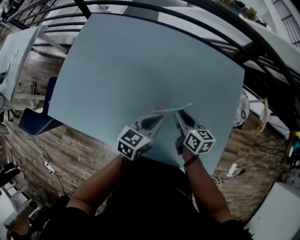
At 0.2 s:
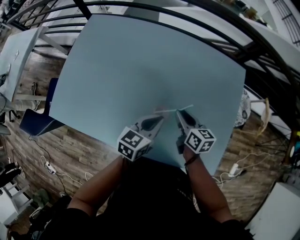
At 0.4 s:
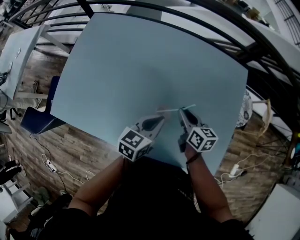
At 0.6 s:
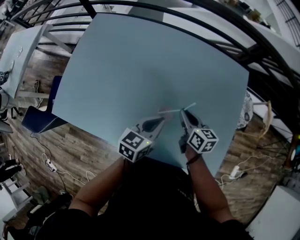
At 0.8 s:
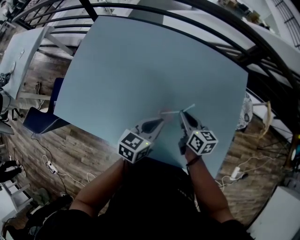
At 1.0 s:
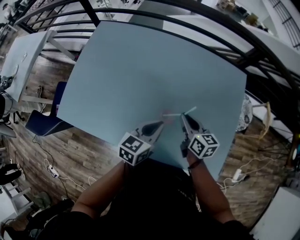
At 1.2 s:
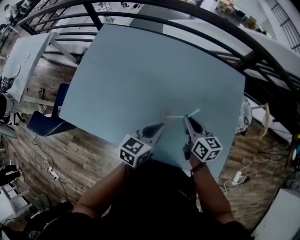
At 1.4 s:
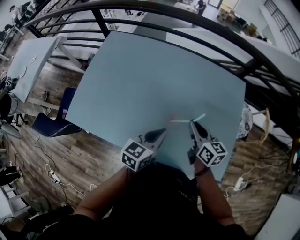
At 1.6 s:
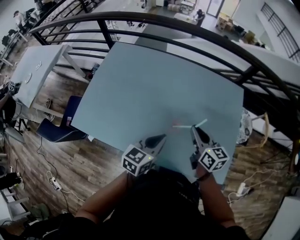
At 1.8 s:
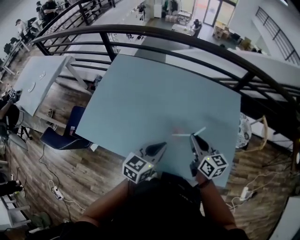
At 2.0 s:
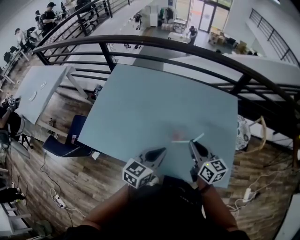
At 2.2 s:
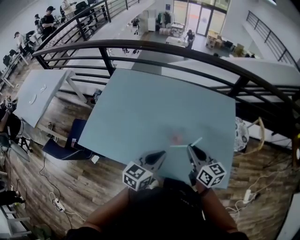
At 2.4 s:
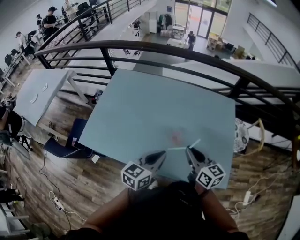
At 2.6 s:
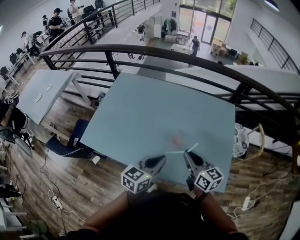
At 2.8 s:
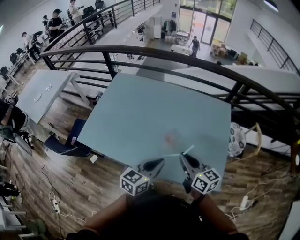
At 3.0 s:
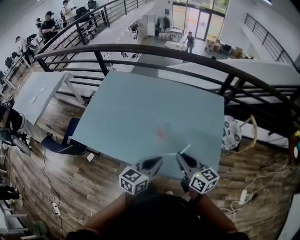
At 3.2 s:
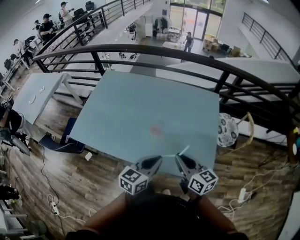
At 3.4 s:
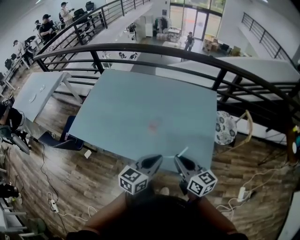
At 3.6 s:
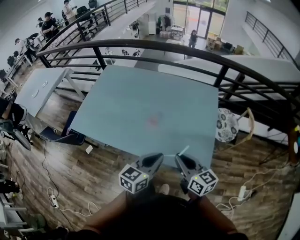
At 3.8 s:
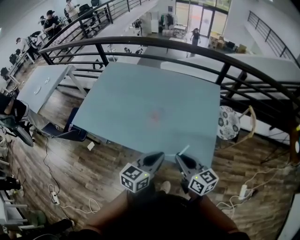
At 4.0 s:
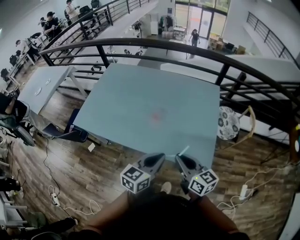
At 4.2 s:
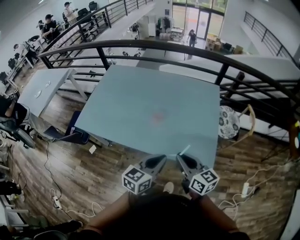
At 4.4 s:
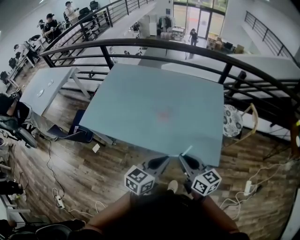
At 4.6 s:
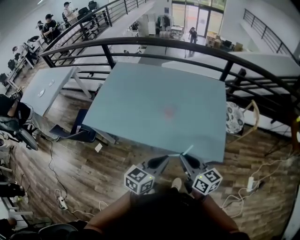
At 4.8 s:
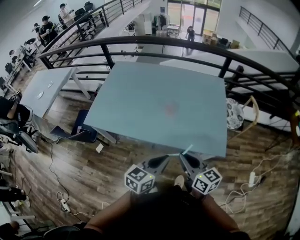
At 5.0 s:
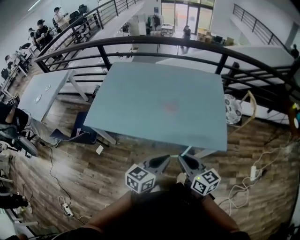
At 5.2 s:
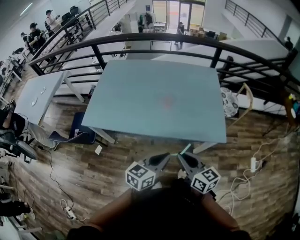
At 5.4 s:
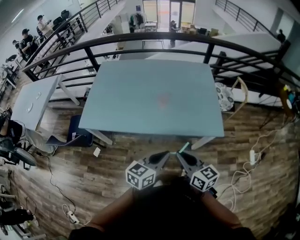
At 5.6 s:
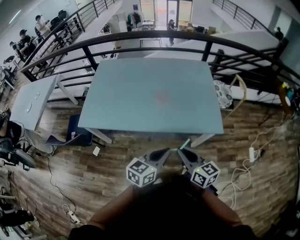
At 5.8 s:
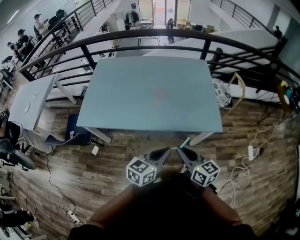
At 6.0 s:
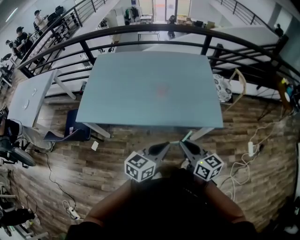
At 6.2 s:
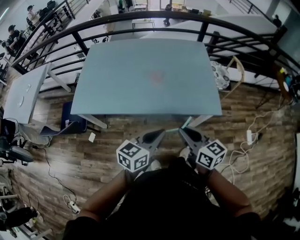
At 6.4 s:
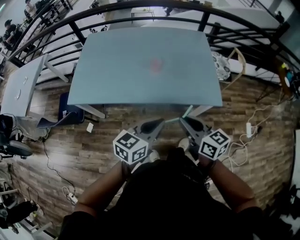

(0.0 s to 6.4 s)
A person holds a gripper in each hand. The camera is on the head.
0.0 s - 1.6 s: The left gripper travels upward, backward and to the left by approximately 15 cm; the right gripper is displaced upward and backward by about 15 cm.
1.6 s - 3.2 s: The left gripper heads backward, to the right and upward, covering approximately 20 cm. The right gripper moves backward and to the right, some 20 cm.
3.2 s - 4.8 s: Both grippers travel together backward and to the left, about 20 cm.

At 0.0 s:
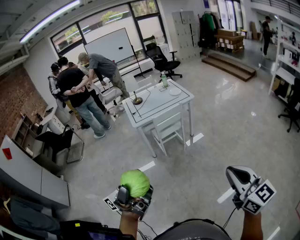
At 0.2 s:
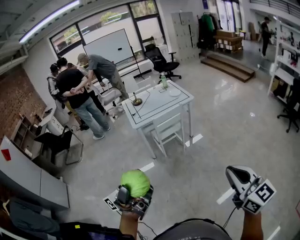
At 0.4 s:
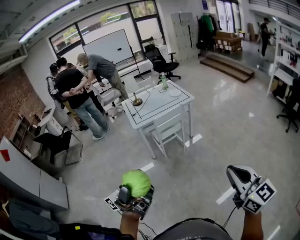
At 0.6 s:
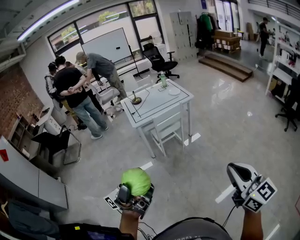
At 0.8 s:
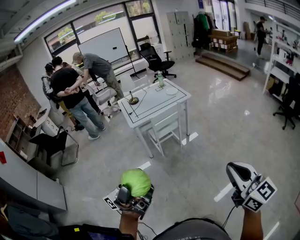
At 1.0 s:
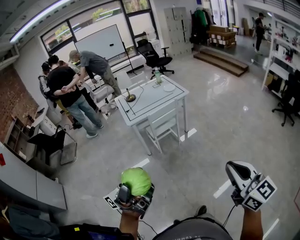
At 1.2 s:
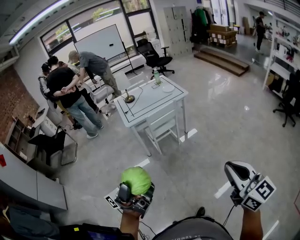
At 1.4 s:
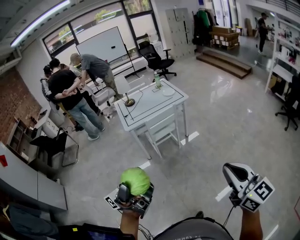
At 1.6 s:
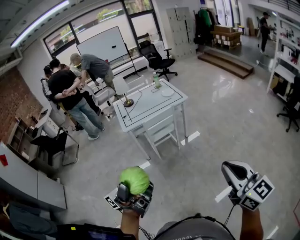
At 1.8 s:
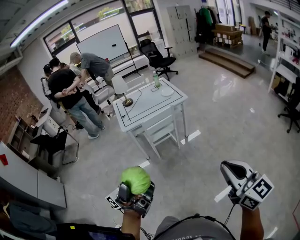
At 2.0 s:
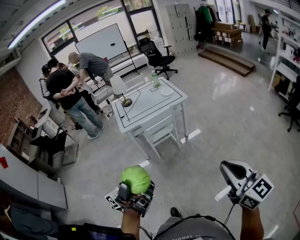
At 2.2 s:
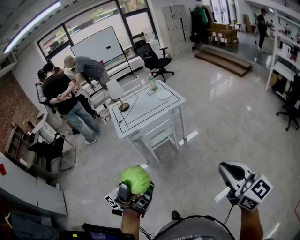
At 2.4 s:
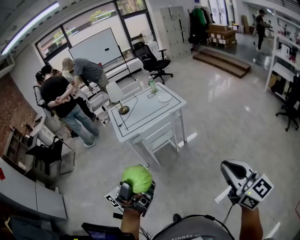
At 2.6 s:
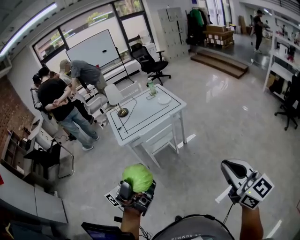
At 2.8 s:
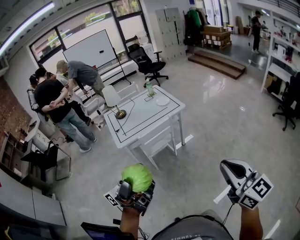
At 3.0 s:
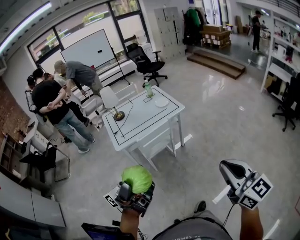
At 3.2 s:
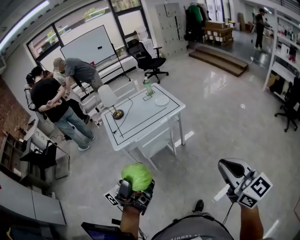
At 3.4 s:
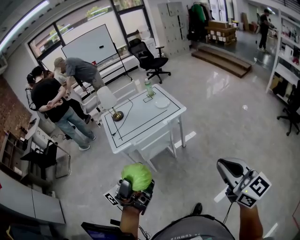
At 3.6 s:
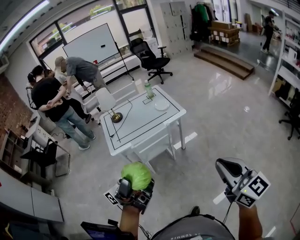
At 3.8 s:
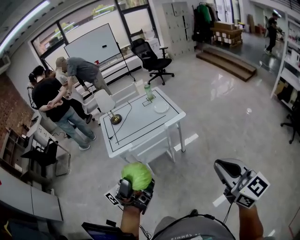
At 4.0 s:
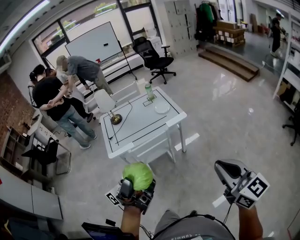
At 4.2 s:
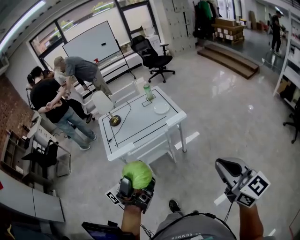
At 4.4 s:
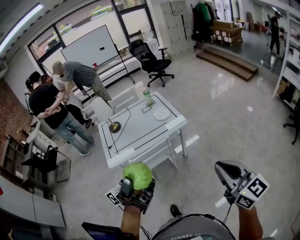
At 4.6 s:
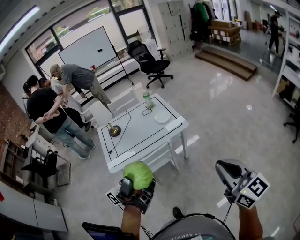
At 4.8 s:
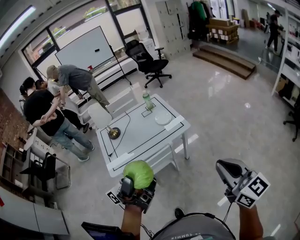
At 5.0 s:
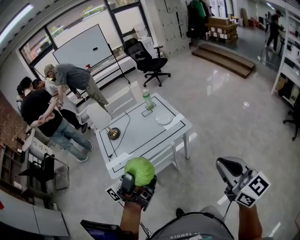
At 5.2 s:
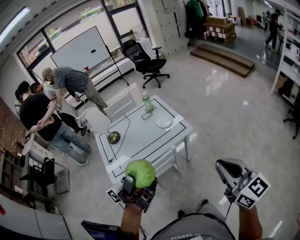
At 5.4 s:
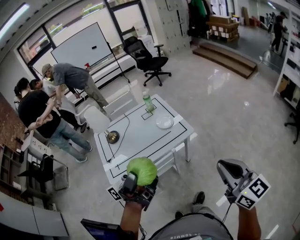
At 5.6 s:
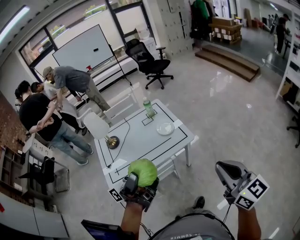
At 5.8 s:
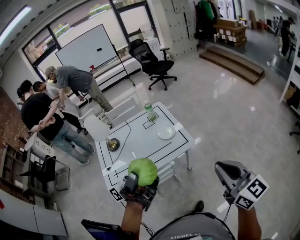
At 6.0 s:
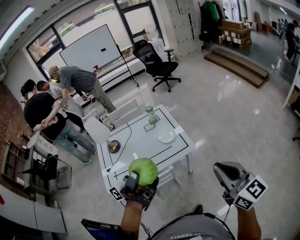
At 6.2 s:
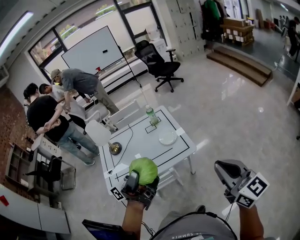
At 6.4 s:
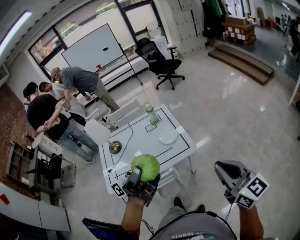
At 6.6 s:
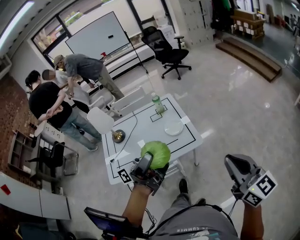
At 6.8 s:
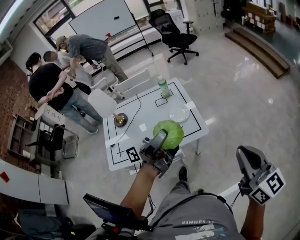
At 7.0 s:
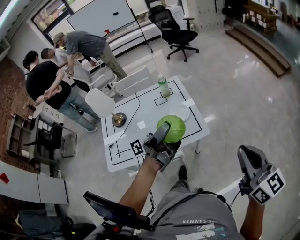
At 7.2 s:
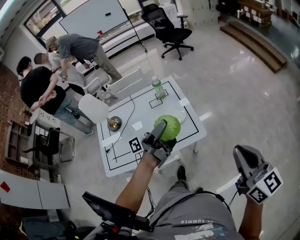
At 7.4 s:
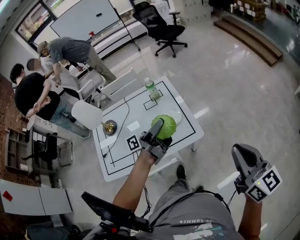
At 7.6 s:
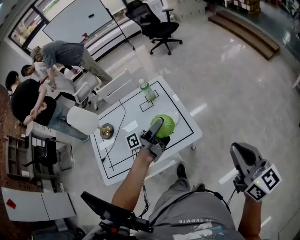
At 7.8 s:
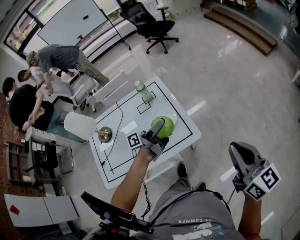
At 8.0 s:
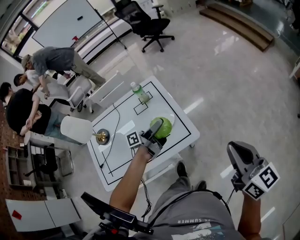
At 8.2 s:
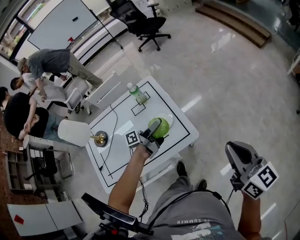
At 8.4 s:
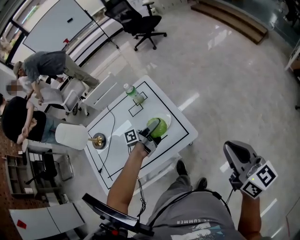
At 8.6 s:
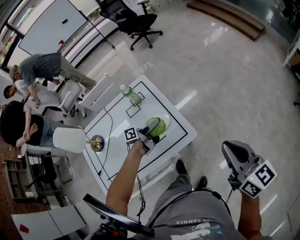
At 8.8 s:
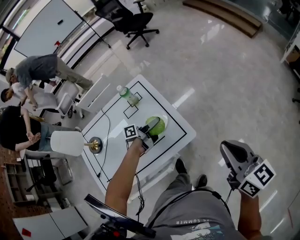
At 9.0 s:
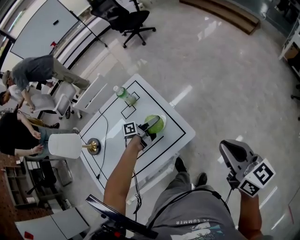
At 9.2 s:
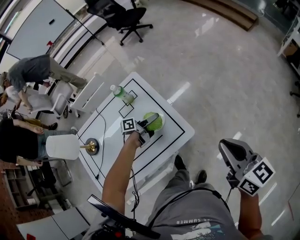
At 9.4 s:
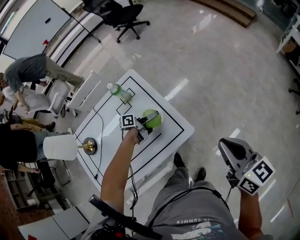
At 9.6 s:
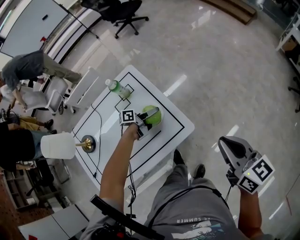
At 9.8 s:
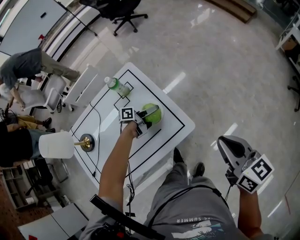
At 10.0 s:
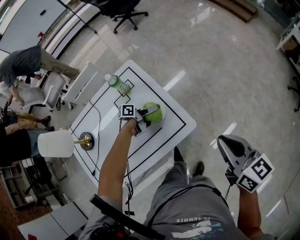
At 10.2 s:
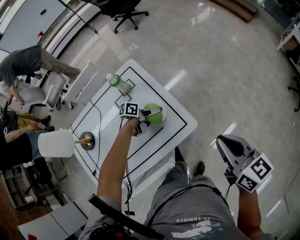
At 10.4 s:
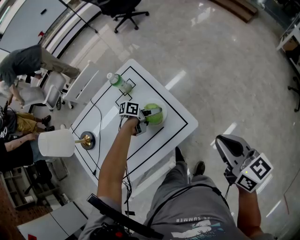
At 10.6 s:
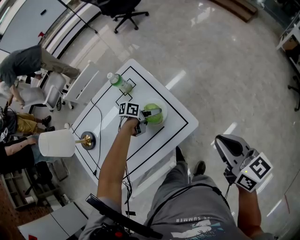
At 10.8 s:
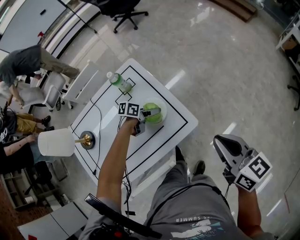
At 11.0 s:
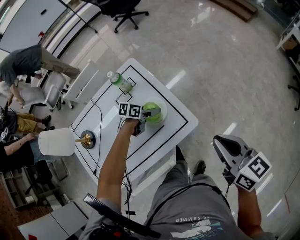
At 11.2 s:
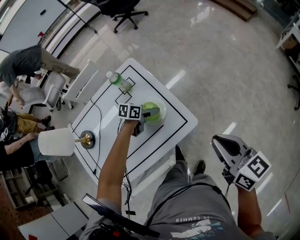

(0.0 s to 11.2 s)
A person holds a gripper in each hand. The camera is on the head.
0.0 s - 1.6 s: The right gripper goes about 10 cm forward; the left gripper travels forward and to the right by approximately 10 cm.
1.6 s - 3.2 s: The two grippers go approximately 20 cm forward.
3.2 s - 4.8 s: Both grippers move forward, approximately 25 cm.
4.8 s - 6.4 s: Both grippers travel together forward, approximately 25 cm.
6.4 s - 8.0 s: The right gripper goes roughly 20 cm forward and downward, while the left gripper heads forward and downward, covering some 40 cm, and points its fingers roughly 30 degrees further downward.
8.0 s - 9.6 s: The right gripper goes approximately 5 cm downward. The left gripper shifts about 20 cm downward and forward, and rotates about 40 degrees.
9.6 s - 11.2 s: The left gripper swivels roughly 40 degrees.

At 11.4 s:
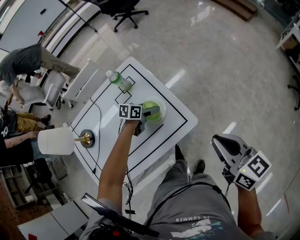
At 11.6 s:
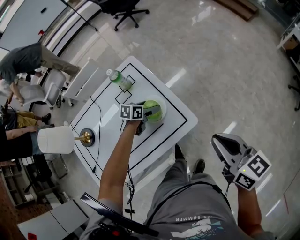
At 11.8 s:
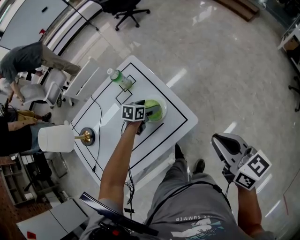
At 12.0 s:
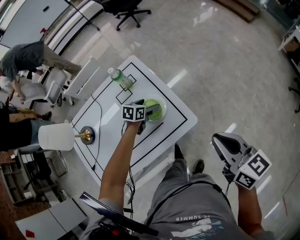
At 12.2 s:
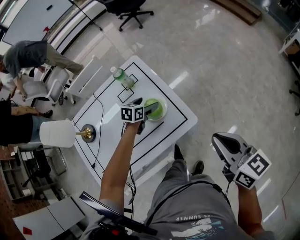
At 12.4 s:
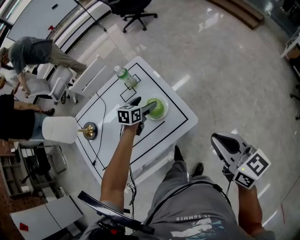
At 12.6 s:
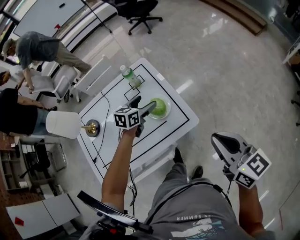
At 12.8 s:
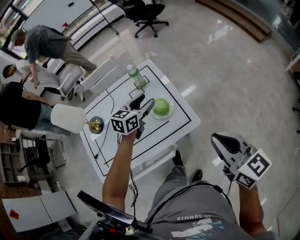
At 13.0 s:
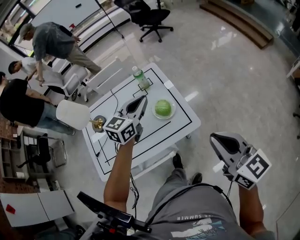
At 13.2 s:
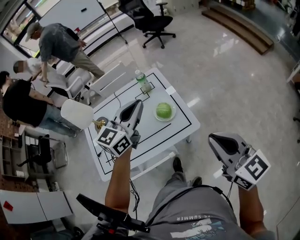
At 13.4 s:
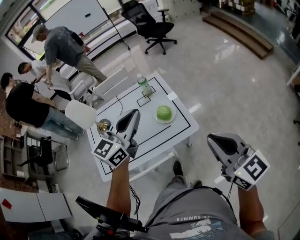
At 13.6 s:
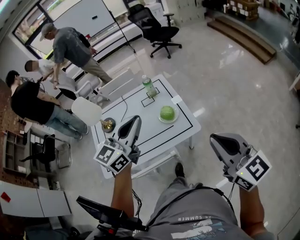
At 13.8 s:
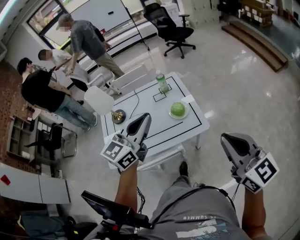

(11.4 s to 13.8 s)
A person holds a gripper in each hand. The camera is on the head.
11.4 s - 12.6 s: The left gripper goes approximately 15 cm upward, and swivels about 30 degrees.
12.6 s - 13.8 s: The left gripper goes roughly 40 cm upward and backward, angles its fingers upward, by approximately 30 degrees, and closes; the right gripper moves upward and backward, about 15 cm, and changes its angle by some 20 degrees.

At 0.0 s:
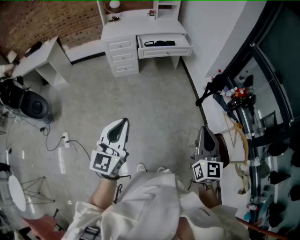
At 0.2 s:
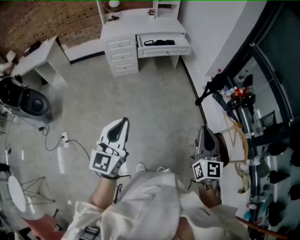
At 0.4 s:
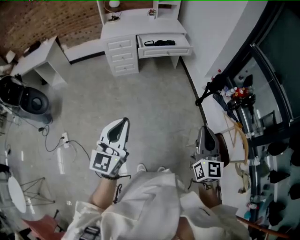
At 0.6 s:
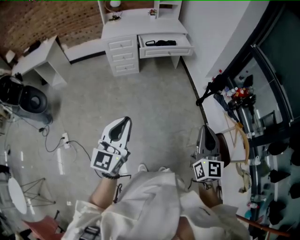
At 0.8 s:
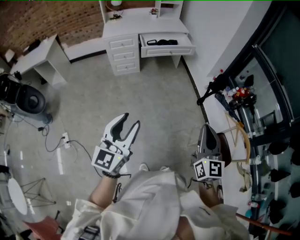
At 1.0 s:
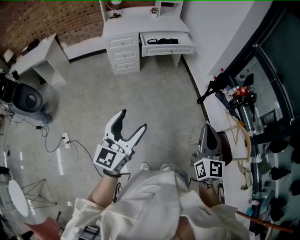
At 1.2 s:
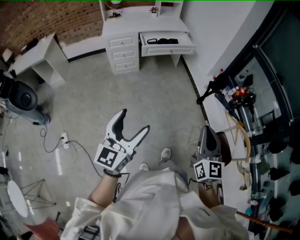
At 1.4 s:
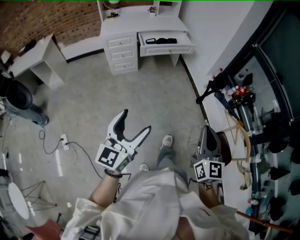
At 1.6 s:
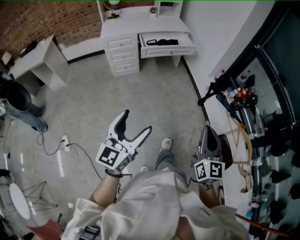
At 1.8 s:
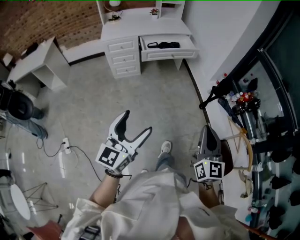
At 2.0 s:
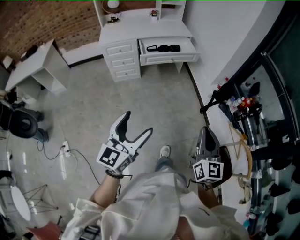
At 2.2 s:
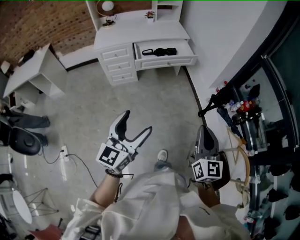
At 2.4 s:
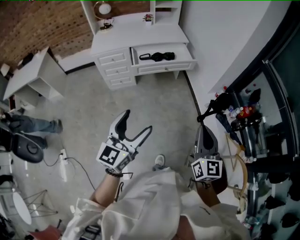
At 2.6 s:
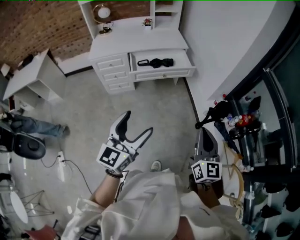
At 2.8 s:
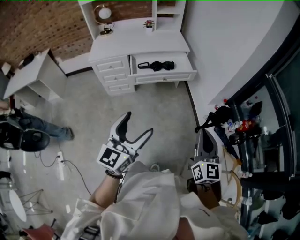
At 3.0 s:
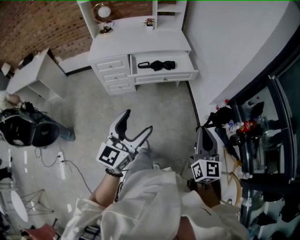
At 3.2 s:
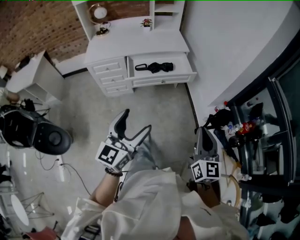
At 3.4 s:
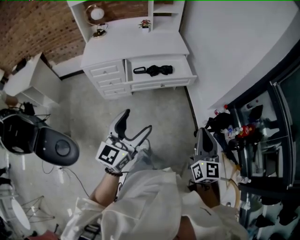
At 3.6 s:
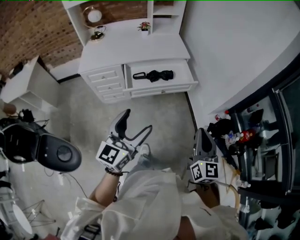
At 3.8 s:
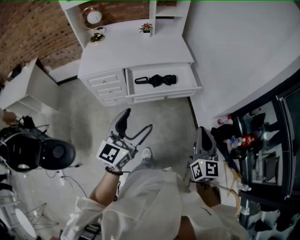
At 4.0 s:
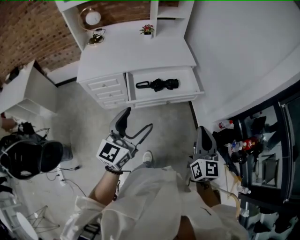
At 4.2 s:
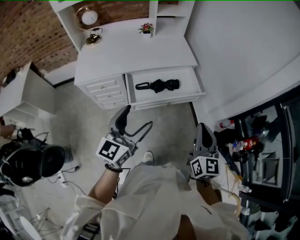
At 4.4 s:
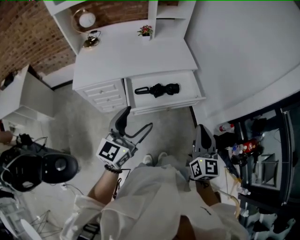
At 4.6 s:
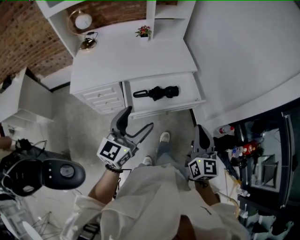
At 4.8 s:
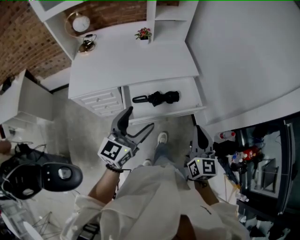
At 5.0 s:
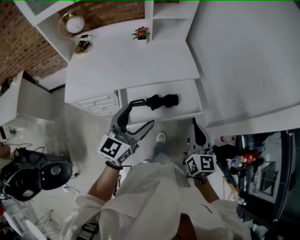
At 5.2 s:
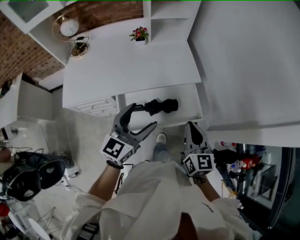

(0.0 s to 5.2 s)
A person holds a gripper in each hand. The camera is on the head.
0.0 s - 1.8 s: The left gripper goes about 10 cm forward, and opens its fingers. Meanwhile the right gripper shifts roughly 10 cm forward and to the left.
1.8 s - 3.4 s: The two grippers travel together, forward, some 40 cm.
3.4 s - 5.2 s: The pair of grippers is taken forward, some 50 cm.
